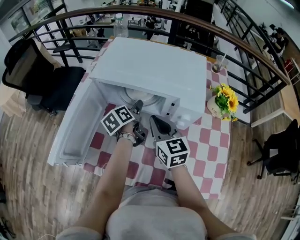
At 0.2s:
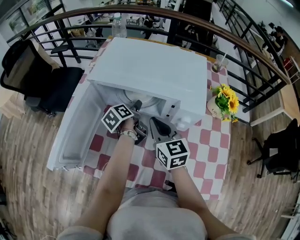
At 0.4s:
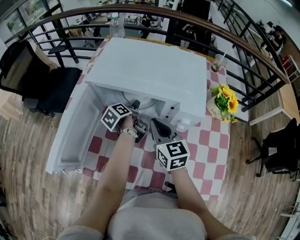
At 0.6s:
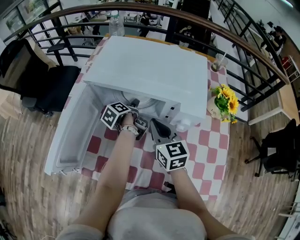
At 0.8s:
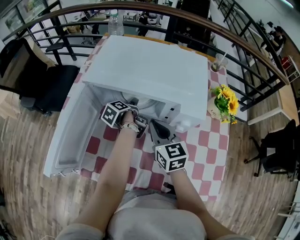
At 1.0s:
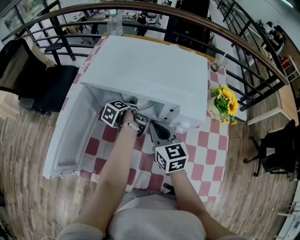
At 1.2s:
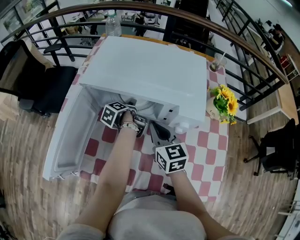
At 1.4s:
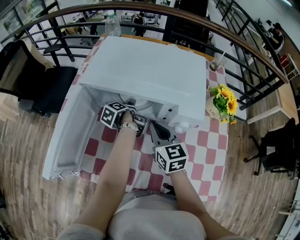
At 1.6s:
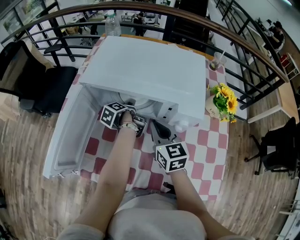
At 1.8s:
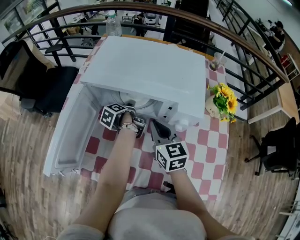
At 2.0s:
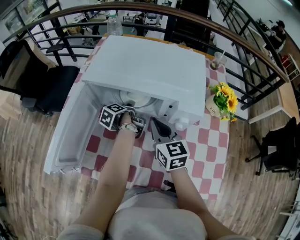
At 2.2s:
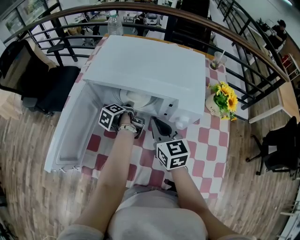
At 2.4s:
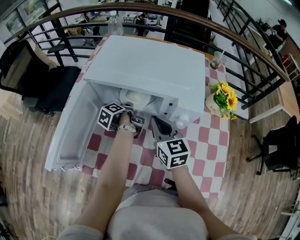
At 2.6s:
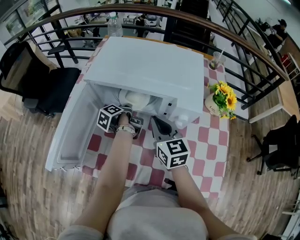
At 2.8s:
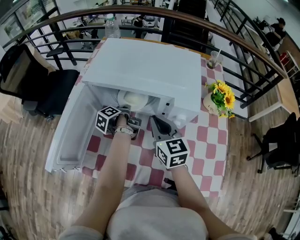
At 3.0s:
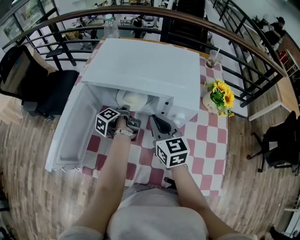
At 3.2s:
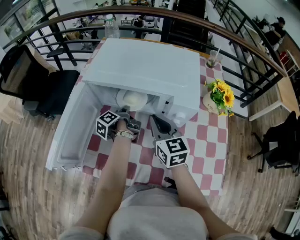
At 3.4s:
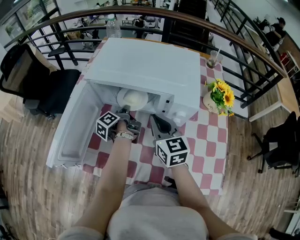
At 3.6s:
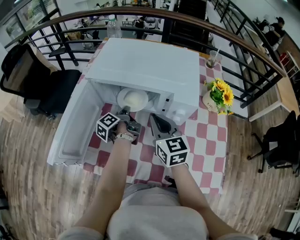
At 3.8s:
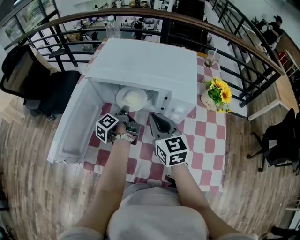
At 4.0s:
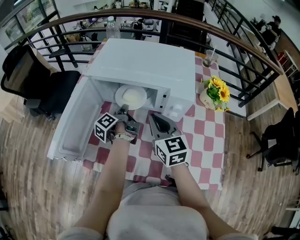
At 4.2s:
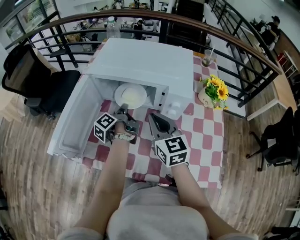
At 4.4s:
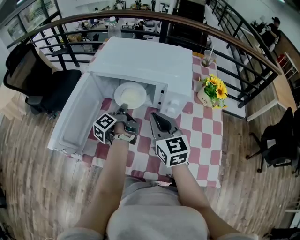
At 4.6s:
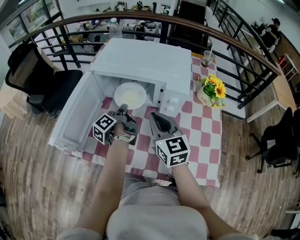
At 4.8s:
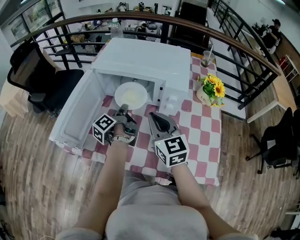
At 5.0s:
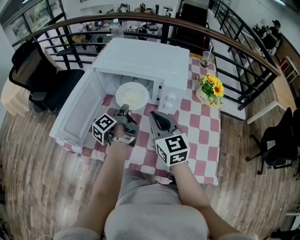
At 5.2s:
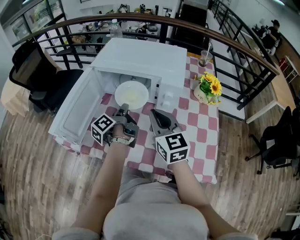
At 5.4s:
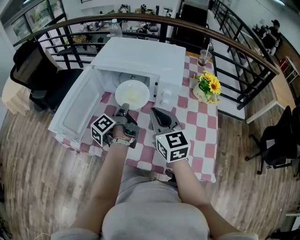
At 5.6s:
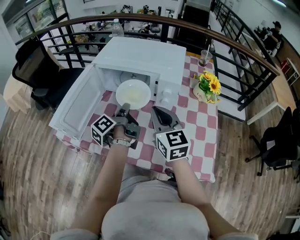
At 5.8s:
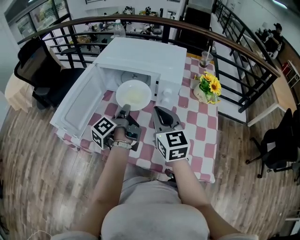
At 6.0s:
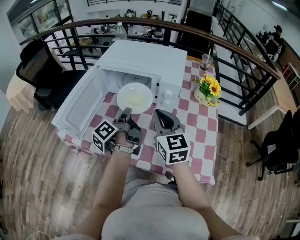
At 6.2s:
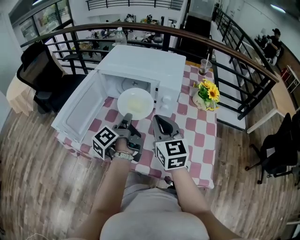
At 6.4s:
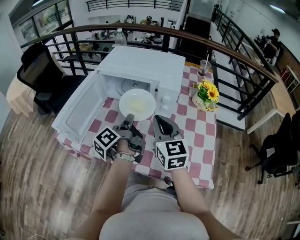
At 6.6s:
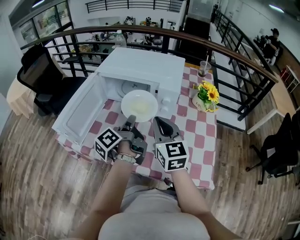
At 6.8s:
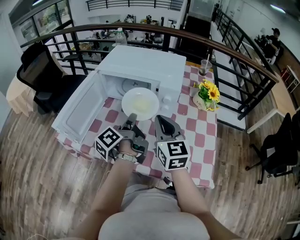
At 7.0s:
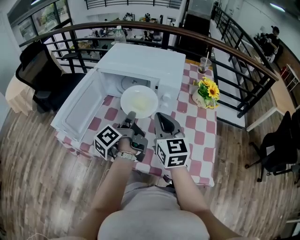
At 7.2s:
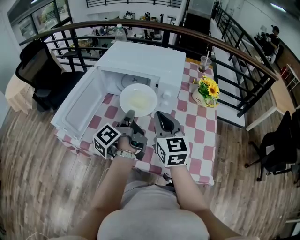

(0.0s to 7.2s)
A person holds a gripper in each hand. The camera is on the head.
0.0s - 1.4s: The left gripper shifts some 10 cm downward, and turns by roughly 30 degrees.
1.4s - 2.8s: The left gripper closes its fingers.
2.8s - 4.4s: The right gripper moves backward, approximately 5 cm, while the left gripper travels backward and upward by roughly 10 cm.
4.4s - 5.8s: The right gripper heads backward, covering roughly 5 cm. The left gripper travels backward and upward by roughly 15 cm.
5.8s - 7.2s: The grippers move only a little.

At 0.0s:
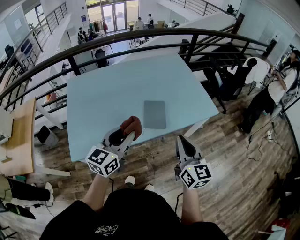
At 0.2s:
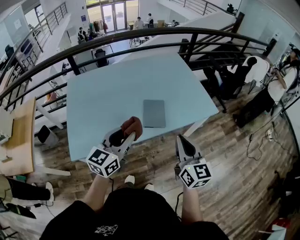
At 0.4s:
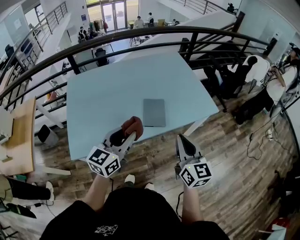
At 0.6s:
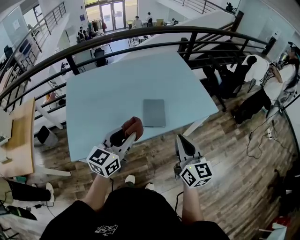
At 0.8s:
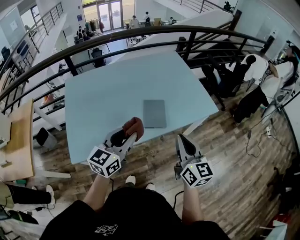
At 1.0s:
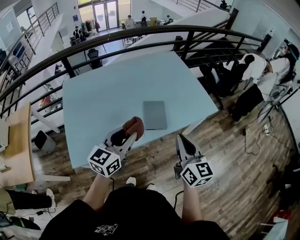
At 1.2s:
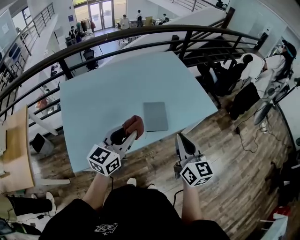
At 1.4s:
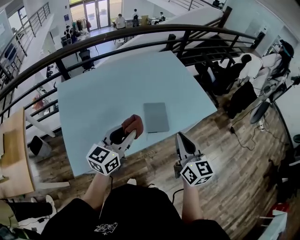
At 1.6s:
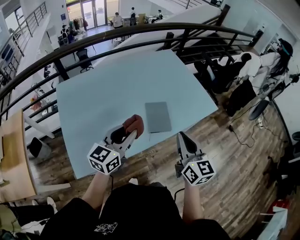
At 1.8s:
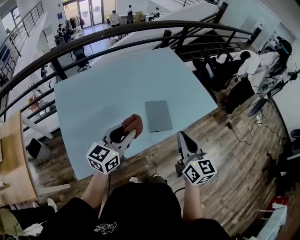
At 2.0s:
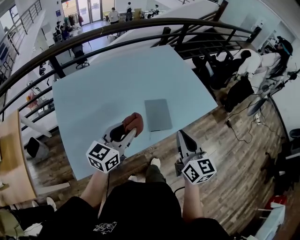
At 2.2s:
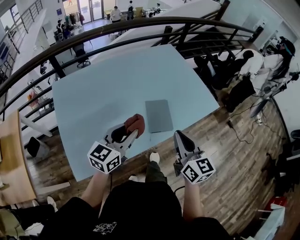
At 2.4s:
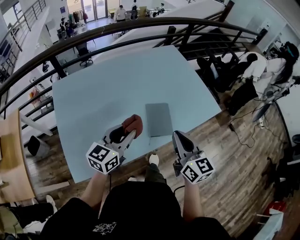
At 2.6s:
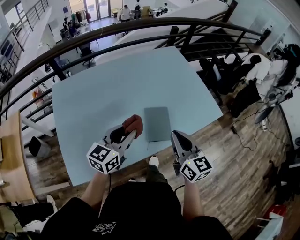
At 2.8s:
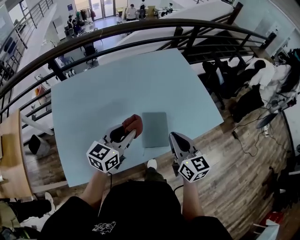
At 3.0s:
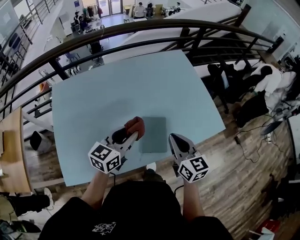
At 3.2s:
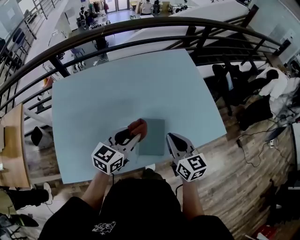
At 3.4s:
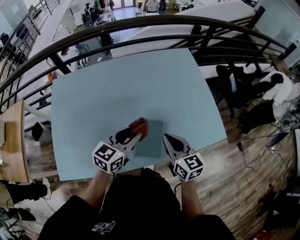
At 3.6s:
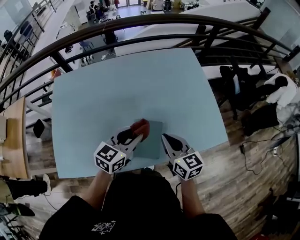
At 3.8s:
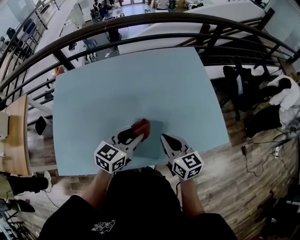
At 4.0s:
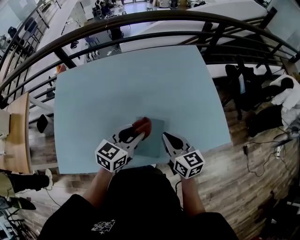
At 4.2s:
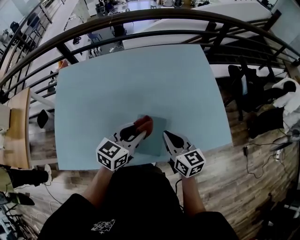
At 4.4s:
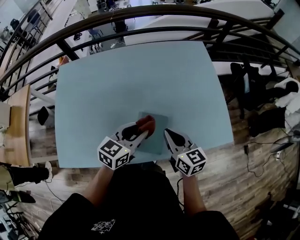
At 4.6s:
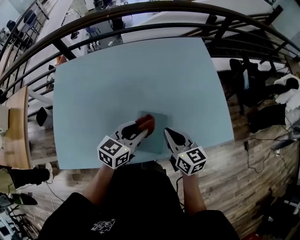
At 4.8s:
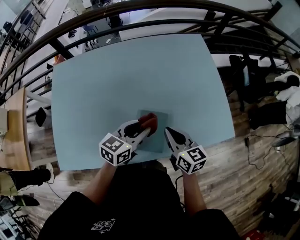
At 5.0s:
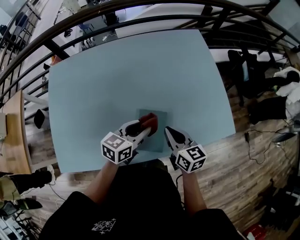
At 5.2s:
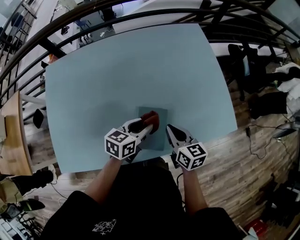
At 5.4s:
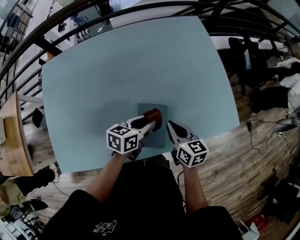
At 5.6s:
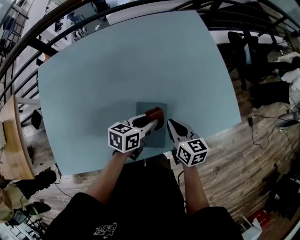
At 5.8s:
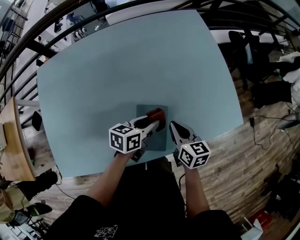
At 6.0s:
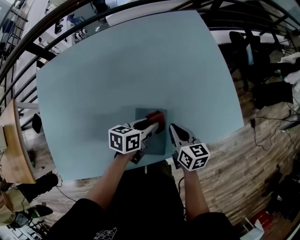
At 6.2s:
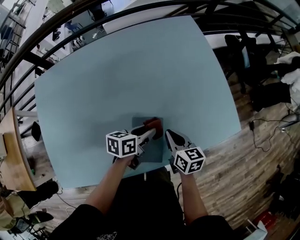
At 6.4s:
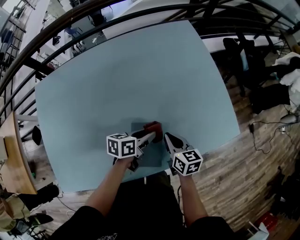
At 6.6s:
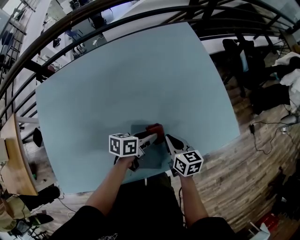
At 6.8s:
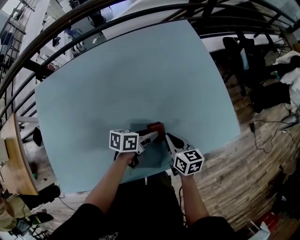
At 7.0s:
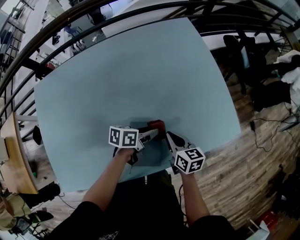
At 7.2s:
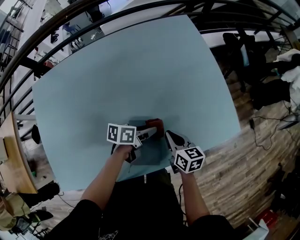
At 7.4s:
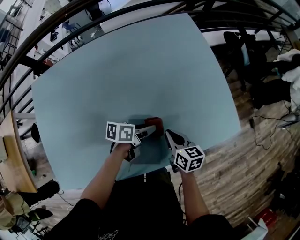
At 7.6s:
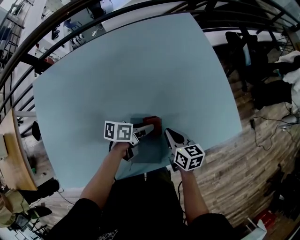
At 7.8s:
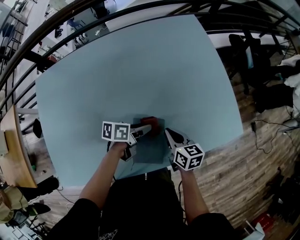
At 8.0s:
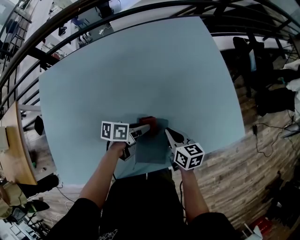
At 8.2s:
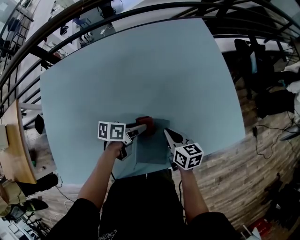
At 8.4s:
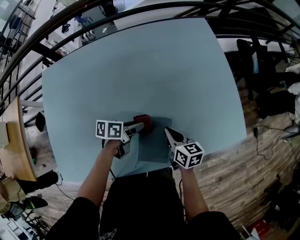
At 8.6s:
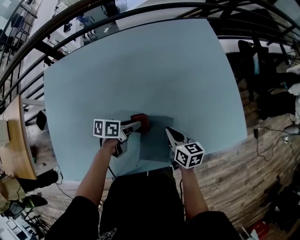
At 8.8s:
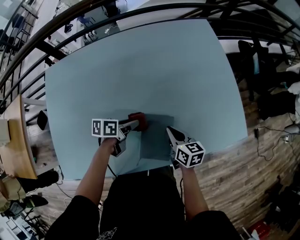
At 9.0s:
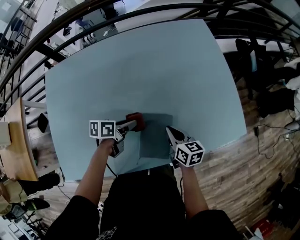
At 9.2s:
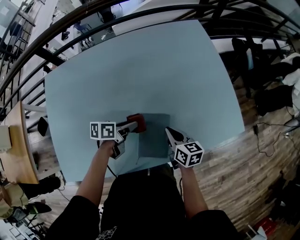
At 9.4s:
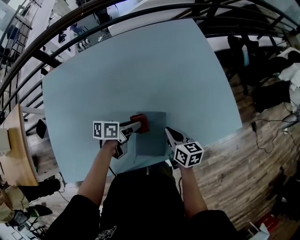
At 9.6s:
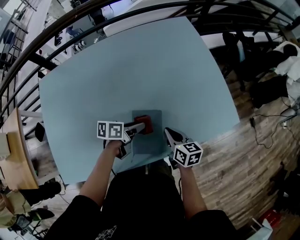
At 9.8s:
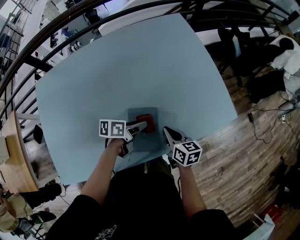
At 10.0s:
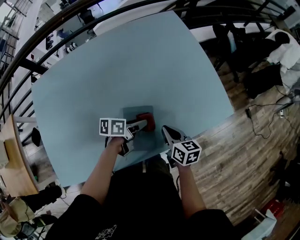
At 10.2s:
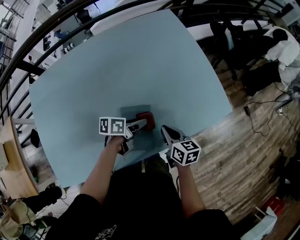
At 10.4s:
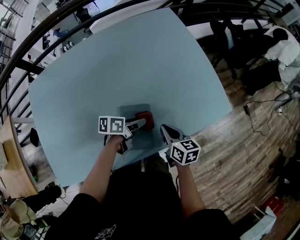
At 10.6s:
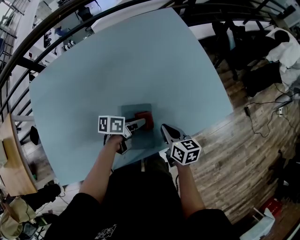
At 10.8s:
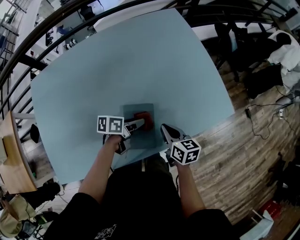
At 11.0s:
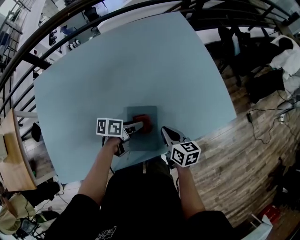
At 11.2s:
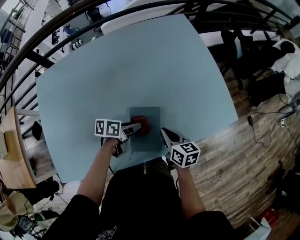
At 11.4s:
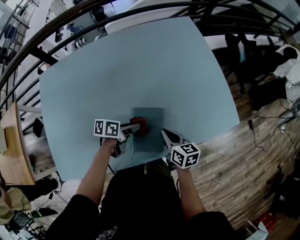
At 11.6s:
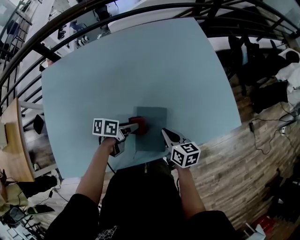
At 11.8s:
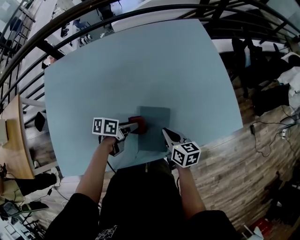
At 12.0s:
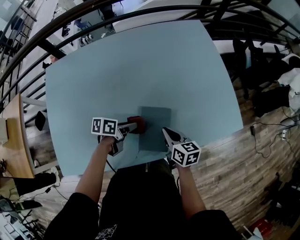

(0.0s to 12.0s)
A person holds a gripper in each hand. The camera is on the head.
0.0s - 1.6s: The grippers both shift to the left and forward by some 10 cm.
1.6s - 3.0s: The right gripper is displaced forward and downward by some 20 cm; the left gripper shifts approximately 15 cm forward.
3.0s - 4.4s: The right gripper is displaced forward and downward by some 10 cm, while the left gripper moves to the right and downward, approximately 10 cm.
4.4s - 6.0s: Both grippers travel together downward, roughly 15 cm. The left gripper changes its angle by about 30 degrees. The right gripper swivels about 20 degrees.
6.0s - 7.6s: The left gripper shifts by about 5 cm.
7.6s - 9.0s: The left gripper heads to the left, covering roughly 15 cm; the right gripper heads to the left, covering about 5 cm.
9.0s - 10.4s: The right gripper travels to the right by approximately 10 cm. Meanwhile the left gripper travels to the right by roughly 15 cm.
10.4s - 12.0s: The right gripper moves to the left, some 10 cm. The left gripper shifts roughly 15 cm to the left and backward.

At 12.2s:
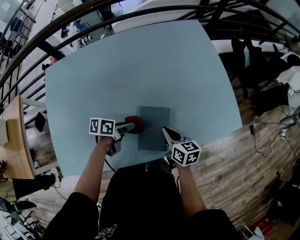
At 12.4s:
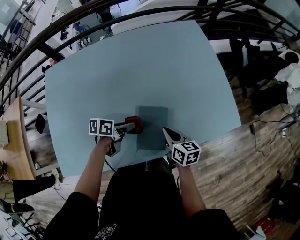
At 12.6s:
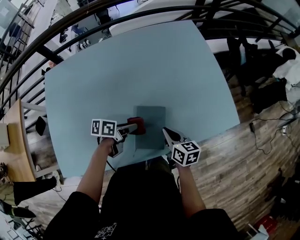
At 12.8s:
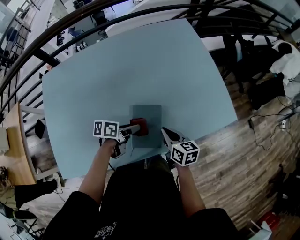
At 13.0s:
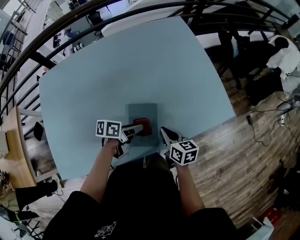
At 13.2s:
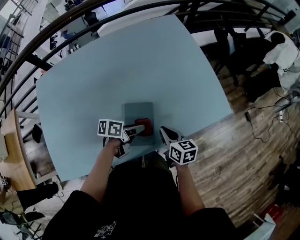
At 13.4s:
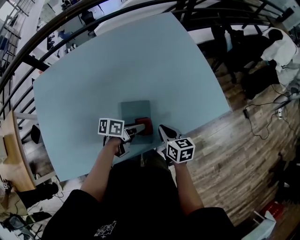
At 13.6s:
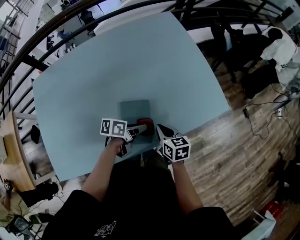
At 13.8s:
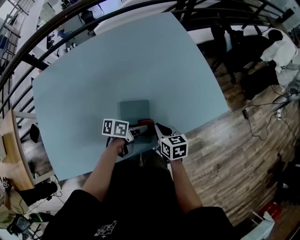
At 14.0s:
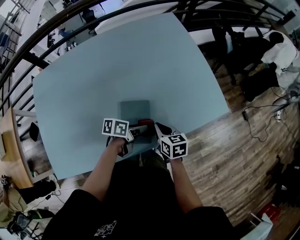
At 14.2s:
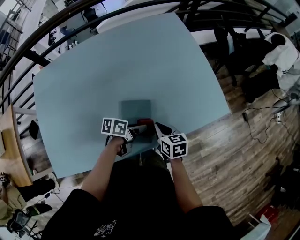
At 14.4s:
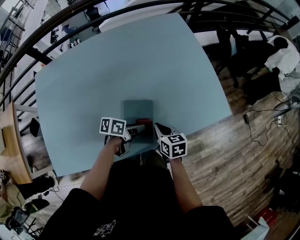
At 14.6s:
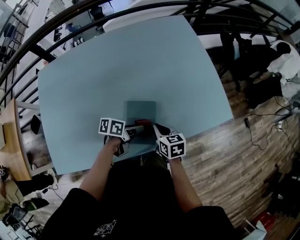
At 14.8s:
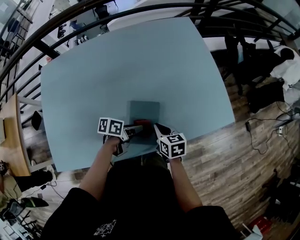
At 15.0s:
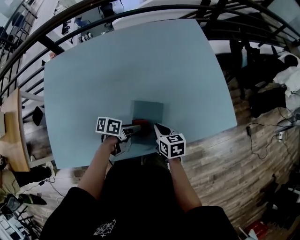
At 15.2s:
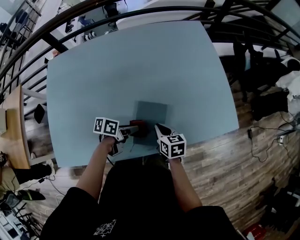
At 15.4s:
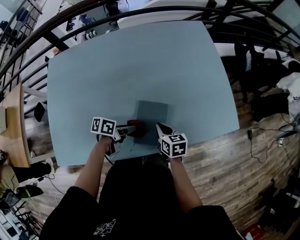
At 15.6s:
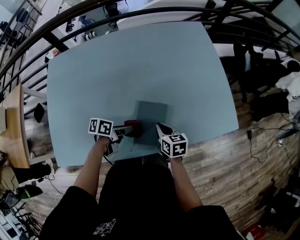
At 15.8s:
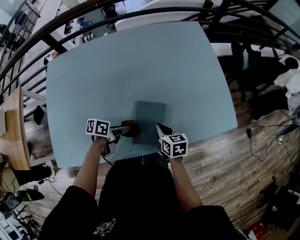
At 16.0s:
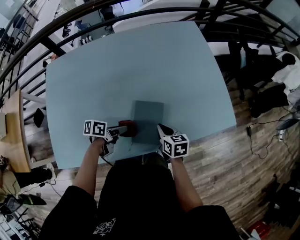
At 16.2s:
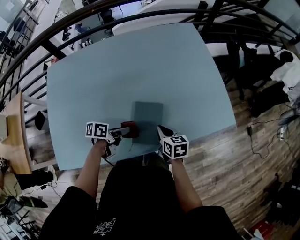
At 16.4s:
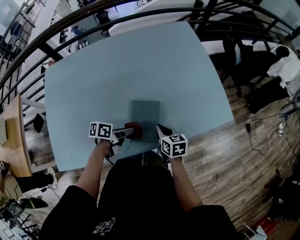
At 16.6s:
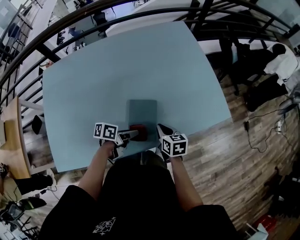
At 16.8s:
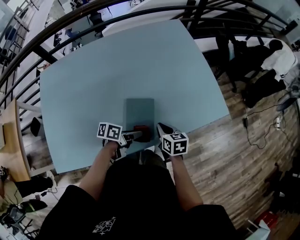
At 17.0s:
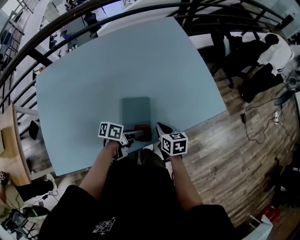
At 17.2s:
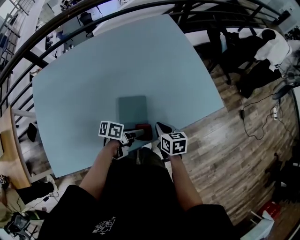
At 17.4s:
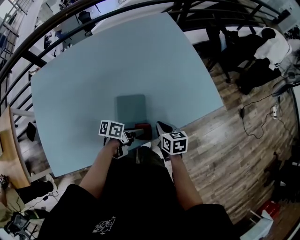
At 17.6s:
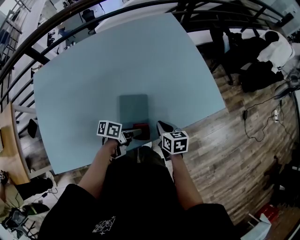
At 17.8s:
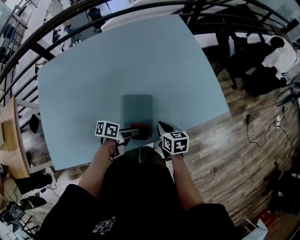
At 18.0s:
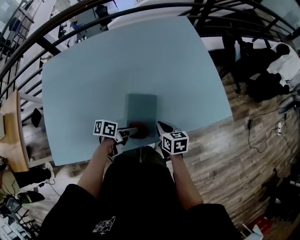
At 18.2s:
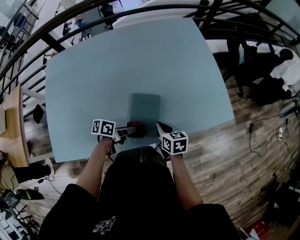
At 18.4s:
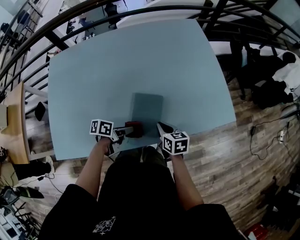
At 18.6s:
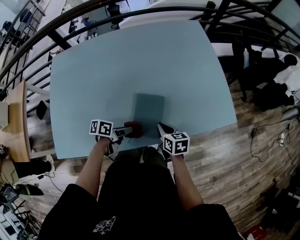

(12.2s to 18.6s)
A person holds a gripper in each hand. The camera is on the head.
12.2s - 13.8s: The left gripper travels to the right by about 15 cm. The right gripper moves to the right, roughly 5 cm.
13.8s - 15.4s: The left gripper goes some 10 cm to the left; the right gripper shifts some 5 cm to the left.
15.4s - 17.0s: The grippers both shift to the right by approximately 10 cm.
17.0s - 18.6s: The left gripper heads to the left, covering about 10 cm.
